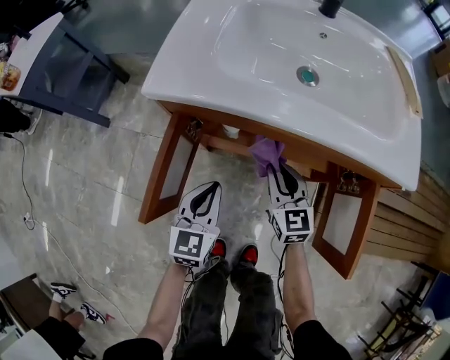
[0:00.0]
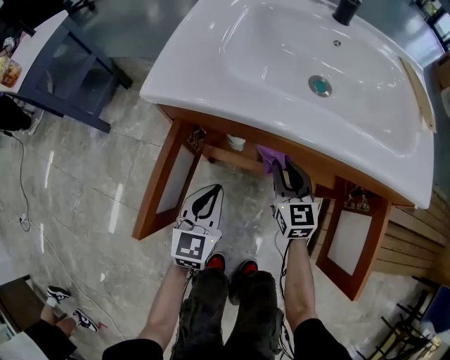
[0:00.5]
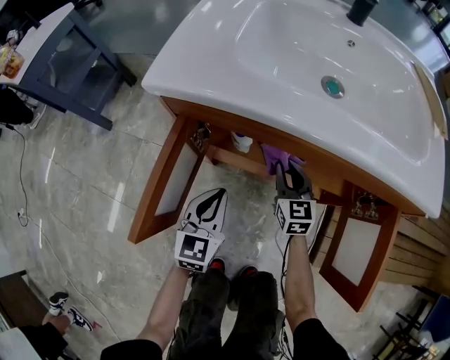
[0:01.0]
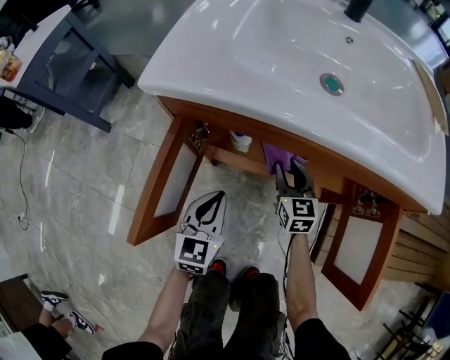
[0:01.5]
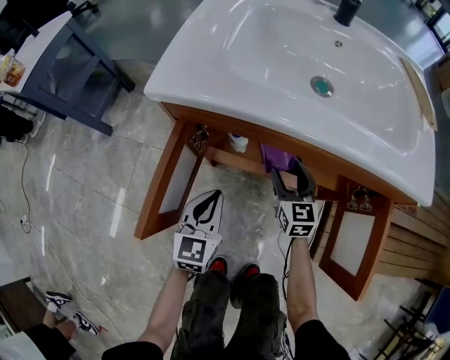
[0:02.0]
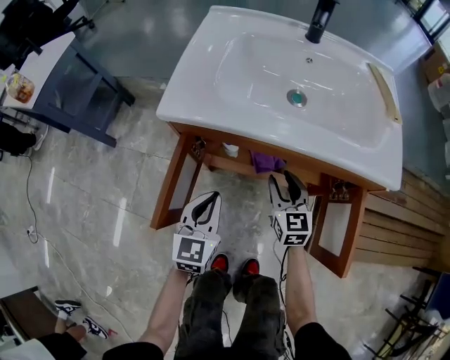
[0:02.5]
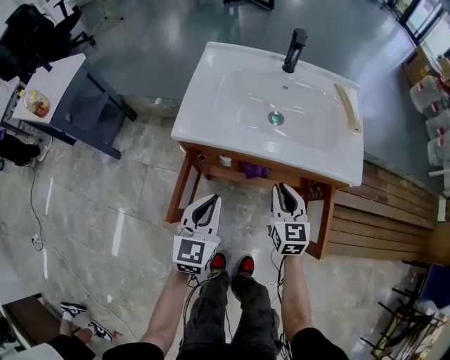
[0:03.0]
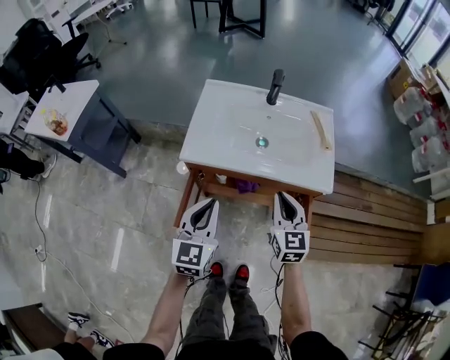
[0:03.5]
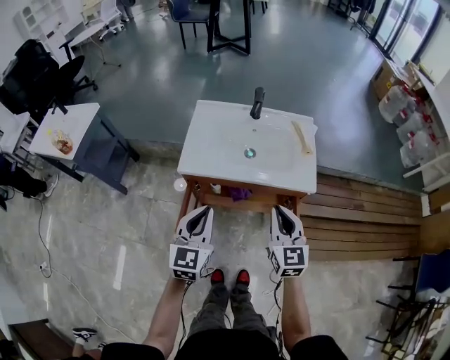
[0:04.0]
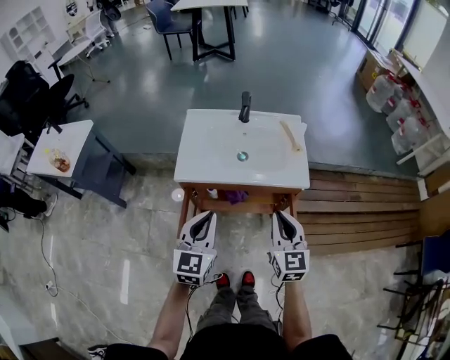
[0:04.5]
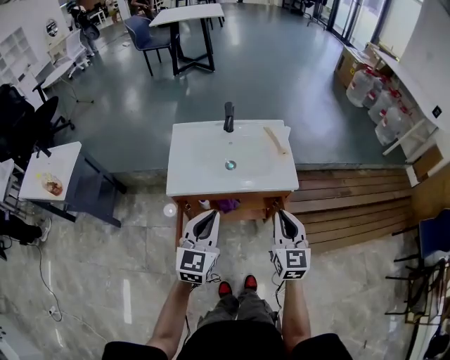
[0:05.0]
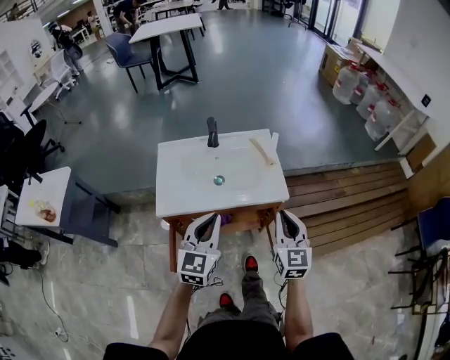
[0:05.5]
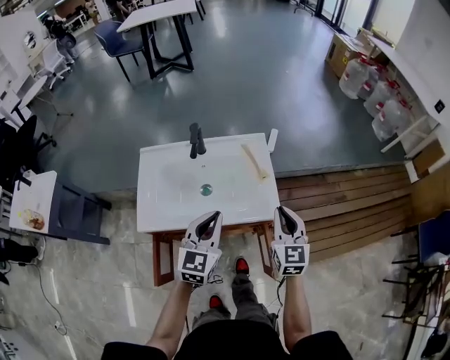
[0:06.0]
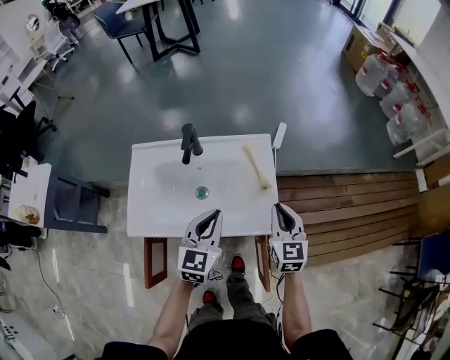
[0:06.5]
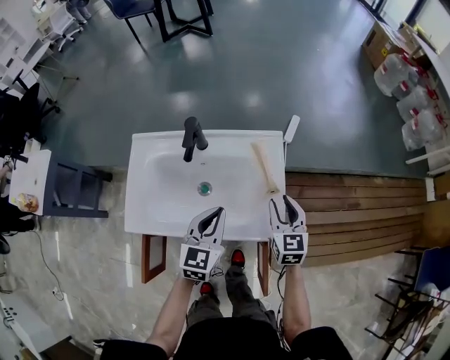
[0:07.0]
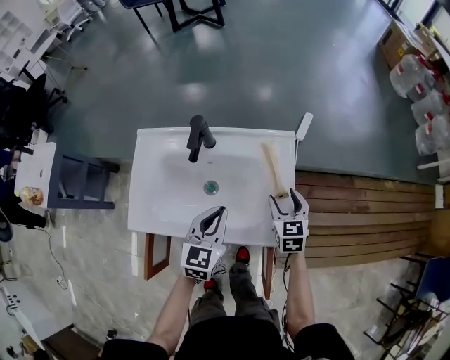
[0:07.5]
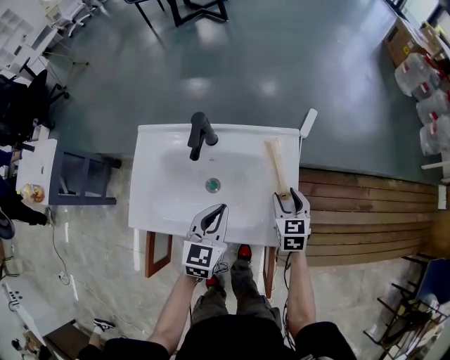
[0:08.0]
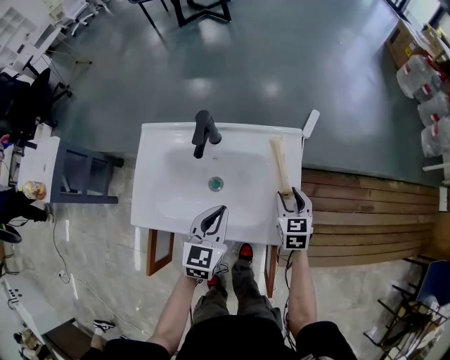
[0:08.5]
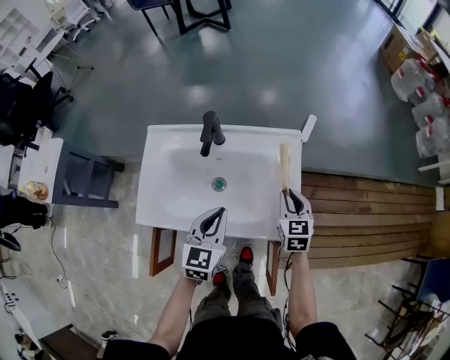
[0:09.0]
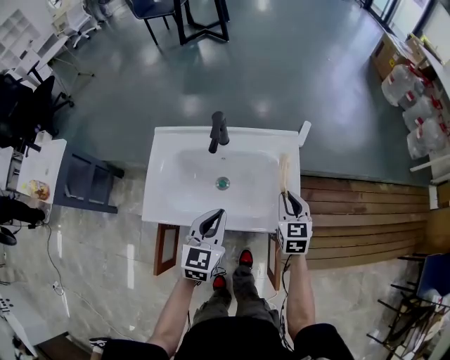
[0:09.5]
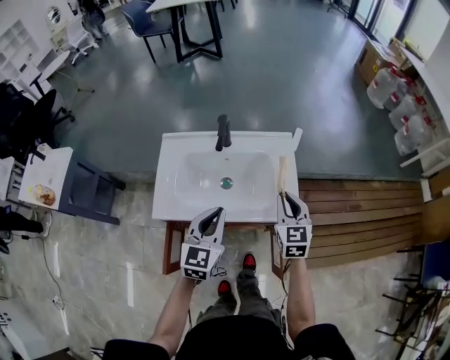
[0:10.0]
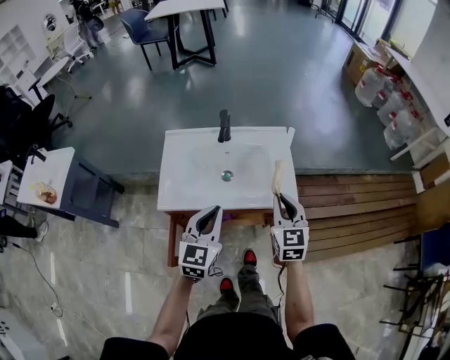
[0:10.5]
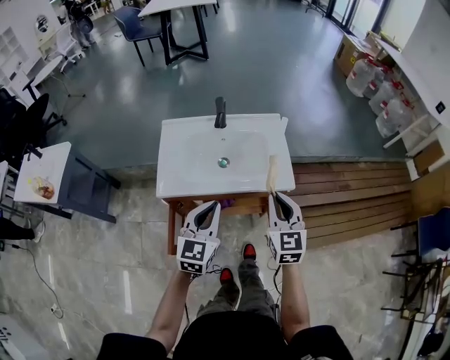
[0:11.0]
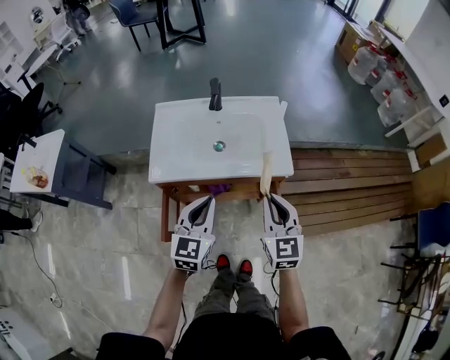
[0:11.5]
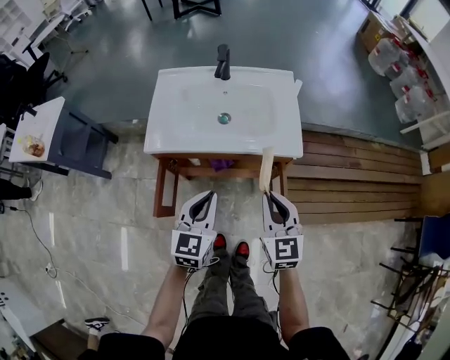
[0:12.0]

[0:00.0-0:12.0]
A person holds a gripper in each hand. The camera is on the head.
0.0 to 2.0 s: The two grippers go about 5 cm downward. The right gripper opens.
2.0 to 4.0 s: Both grippers move upward, approximately 50 cm. The right gripper closes up.
4.0 to 6.0 s: The two grippers go some 25 cm forward and to the right.
6.0 to 8.0 s: The right gripper moves downward and forward, about 25 cm, rotates some 30 degrees, and opens. The left gripper heads forward and downward, covering some 20 cm.
8.0 to 10.0 s: The right gripper heads upward and backward, covering approximately 20 cm, and closes, while the left gripper heads backward, upward and to the left, covering about 20 cm.
10.0 to 12.0 s: The grippers both shift backward by about 20 cm.

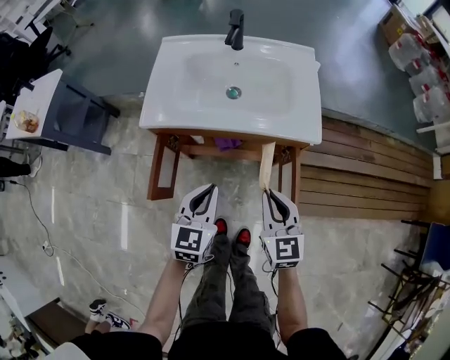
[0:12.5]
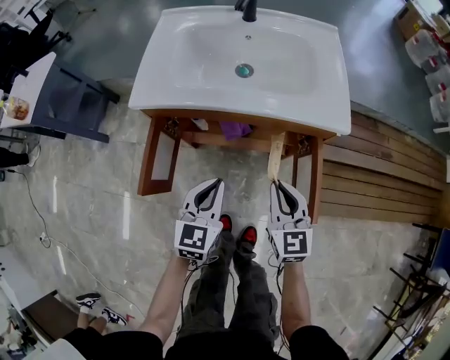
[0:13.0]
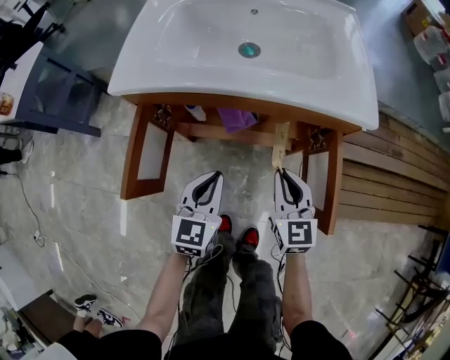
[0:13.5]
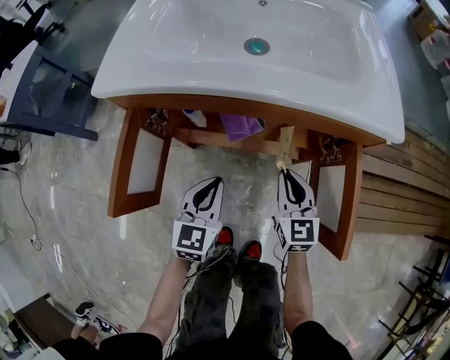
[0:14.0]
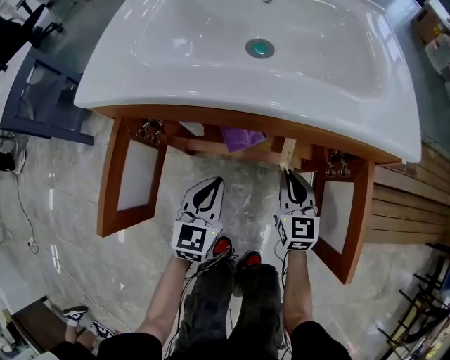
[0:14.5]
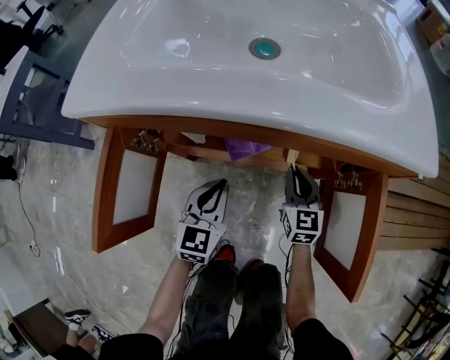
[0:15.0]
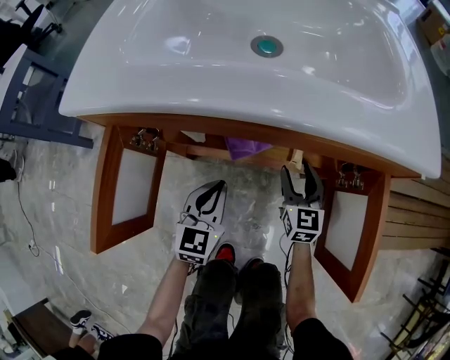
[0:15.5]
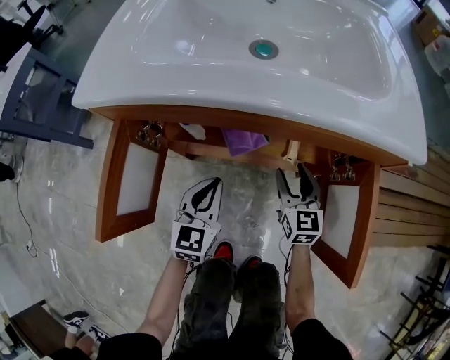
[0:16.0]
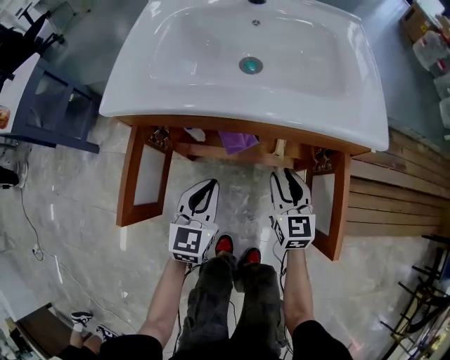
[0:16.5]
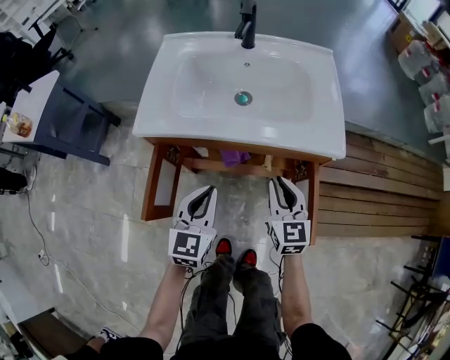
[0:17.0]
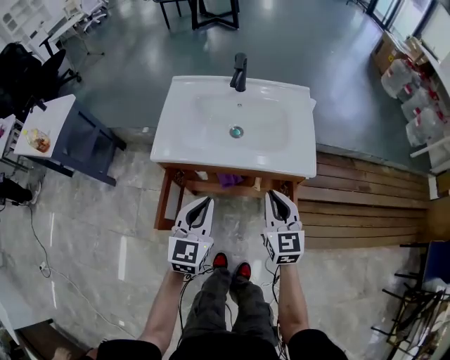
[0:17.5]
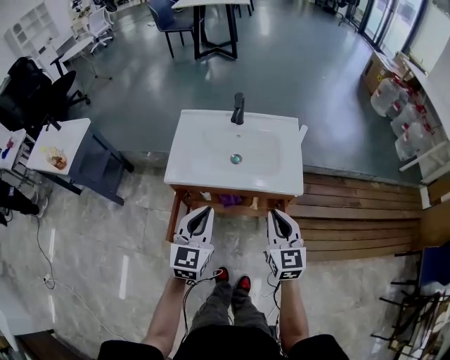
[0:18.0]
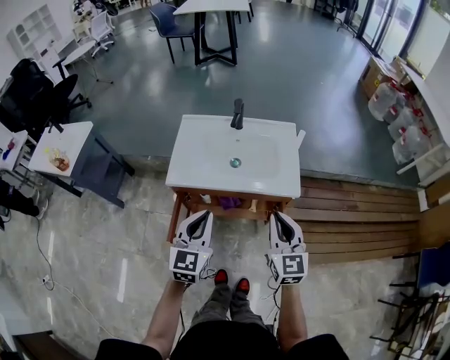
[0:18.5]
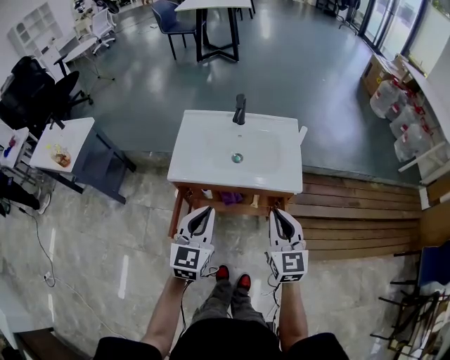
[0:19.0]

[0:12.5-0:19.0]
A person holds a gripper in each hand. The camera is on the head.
12.5 to 14.5 s: The grippers both shift downward by roughly 30 cm.
14.5 to 17.0 s: The two grippers go some 25 cm upward. The right gripper opens, then closes again.
17.0 to 19.0 s: The grippers both shift upward by approximately 30 cm.

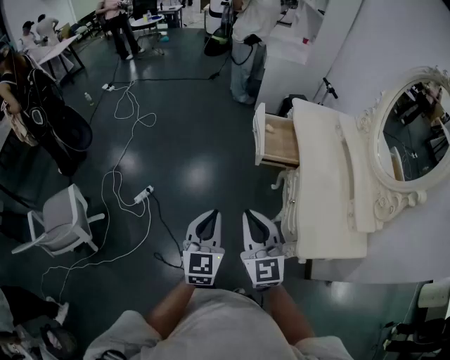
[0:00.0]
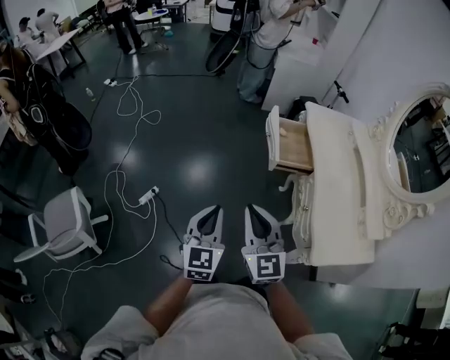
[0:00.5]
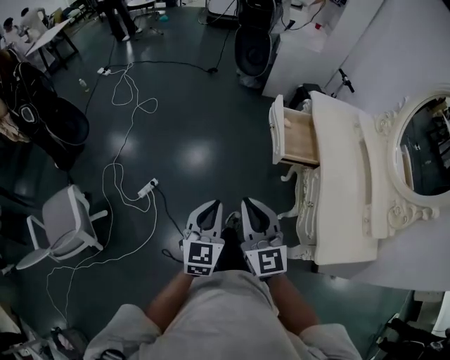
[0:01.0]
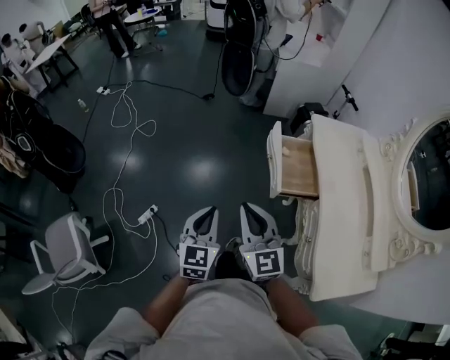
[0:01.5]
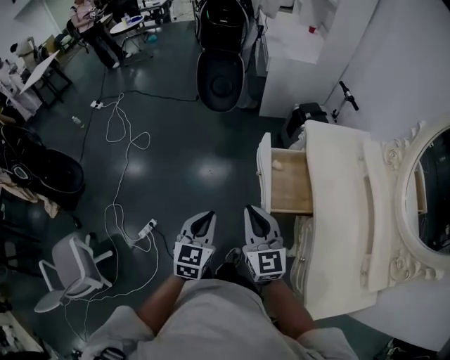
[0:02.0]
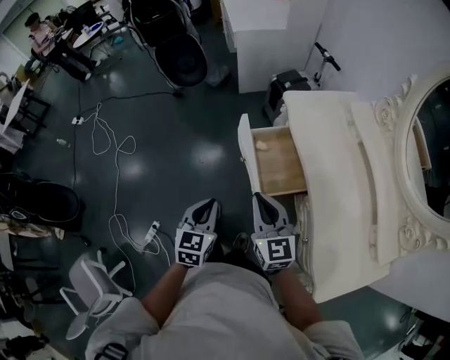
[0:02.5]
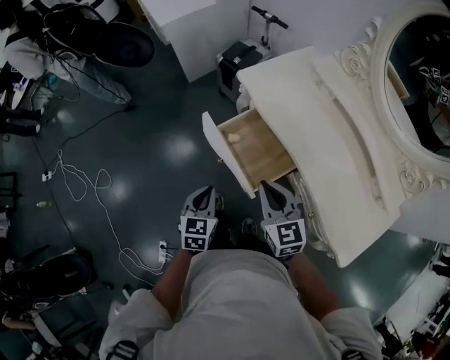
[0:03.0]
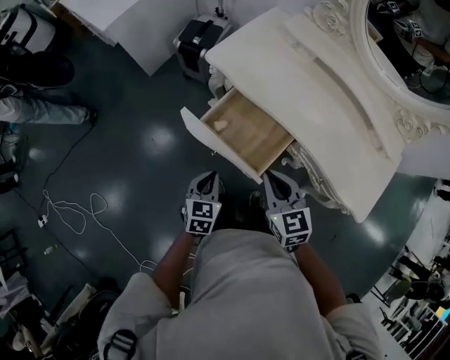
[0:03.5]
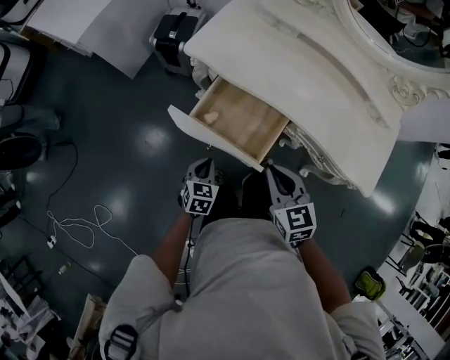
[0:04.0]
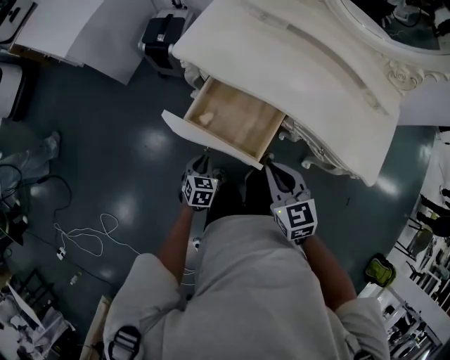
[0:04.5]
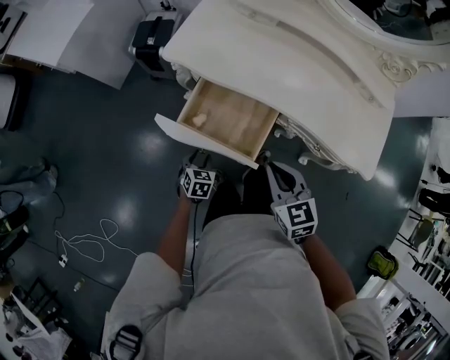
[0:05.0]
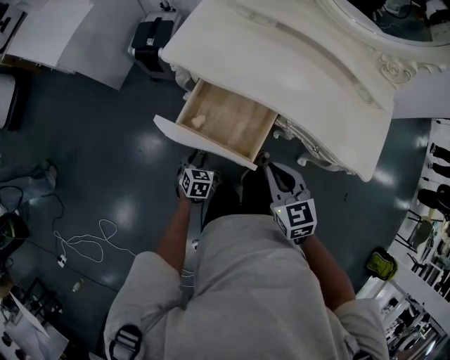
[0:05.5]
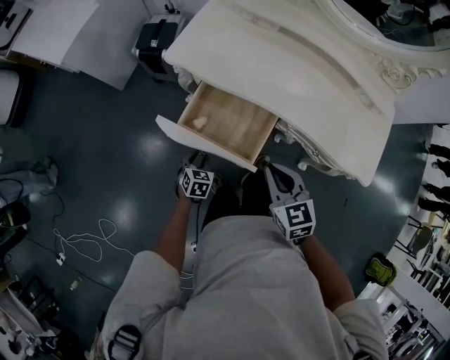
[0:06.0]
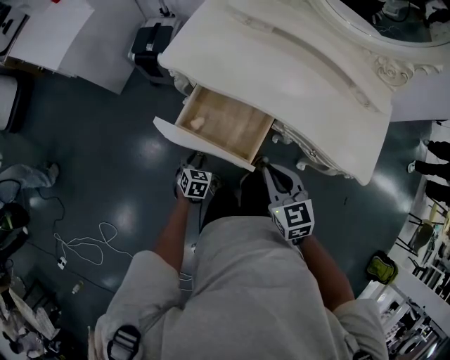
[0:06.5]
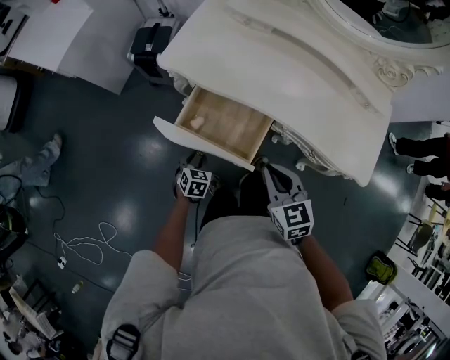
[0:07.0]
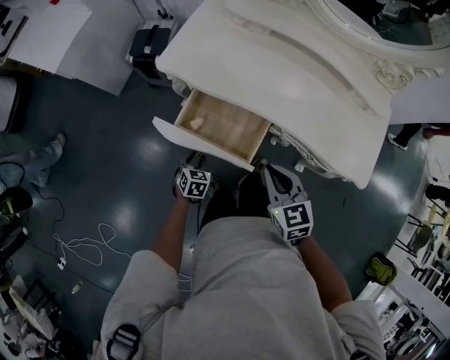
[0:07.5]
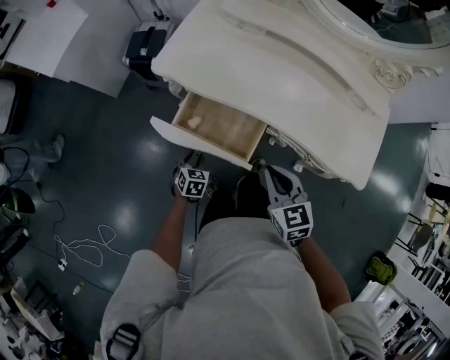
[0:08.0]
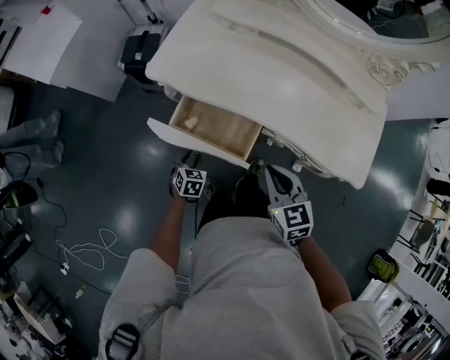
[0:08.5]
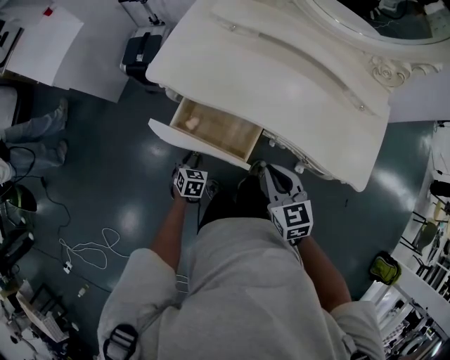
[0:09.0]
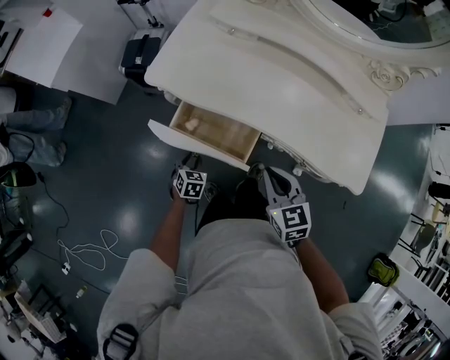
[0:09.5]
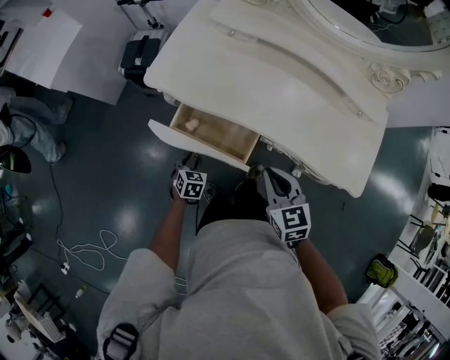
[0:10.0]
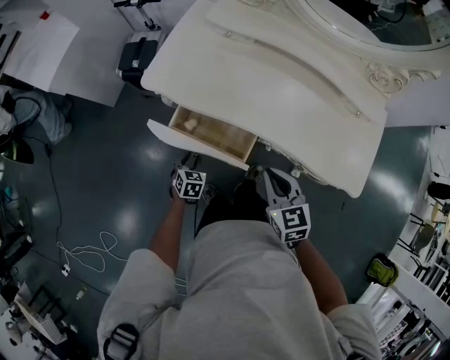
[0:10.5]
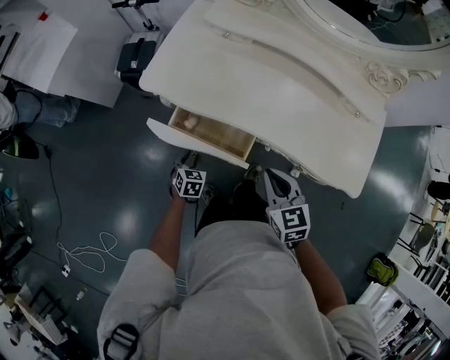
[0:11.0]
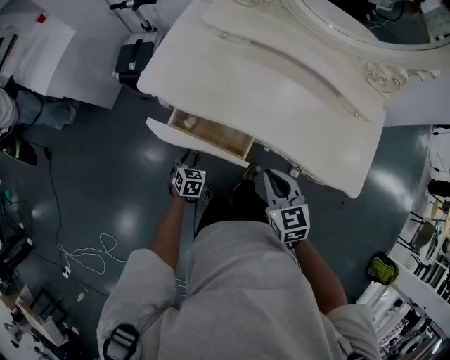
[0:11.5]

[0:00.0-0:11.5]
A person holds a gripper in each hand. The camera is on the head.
0.0 to 2.0 s: The grippers both shift forward by roughly 35 cm.
2.0 to 4.0 s: The left gripper ends up some 35 cm from where it was, and rotates approximately 70 degrees; the right gripper moves roughly 20 cm, and changes its angle by about 60 degrees.
4.0 to 6.0 s: The left gripper is displaced downward by some 10 cm, and opens.
6.0 to 7.5 s: The grippers move only a little.
7.5 to 9.5 s: The grippers stay close to where they were, moving slightly.
9.5 to 11.5 s: The grippers stay close to where they were, moving slightly.
